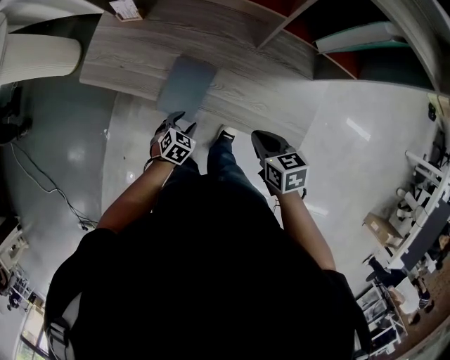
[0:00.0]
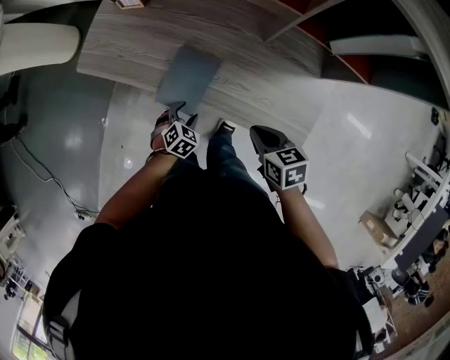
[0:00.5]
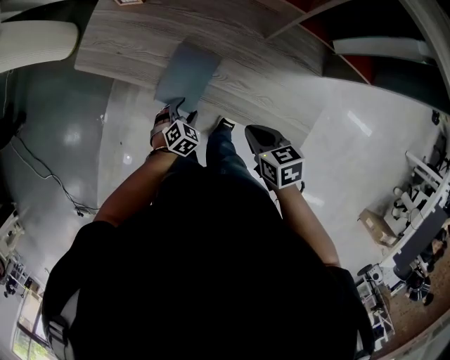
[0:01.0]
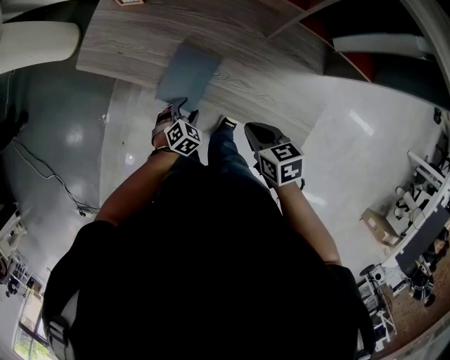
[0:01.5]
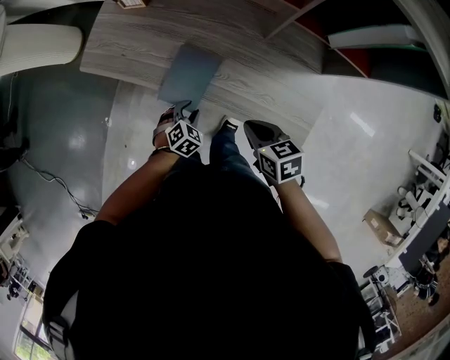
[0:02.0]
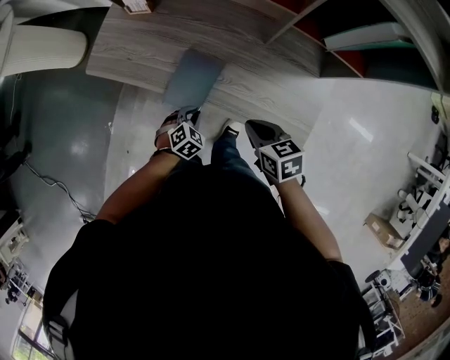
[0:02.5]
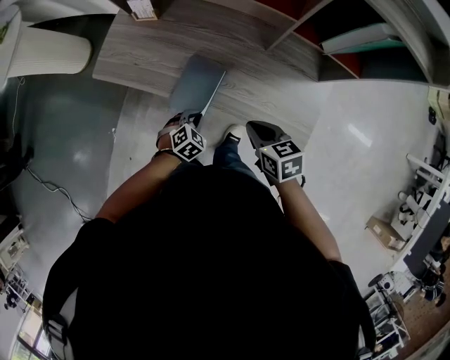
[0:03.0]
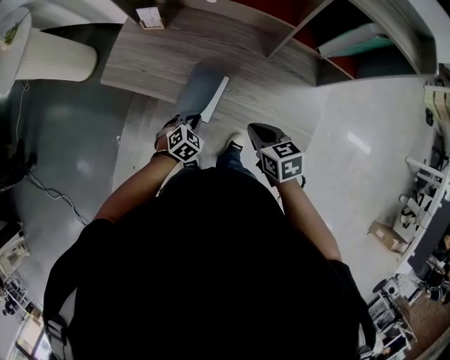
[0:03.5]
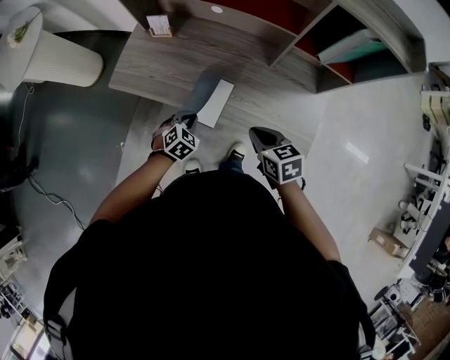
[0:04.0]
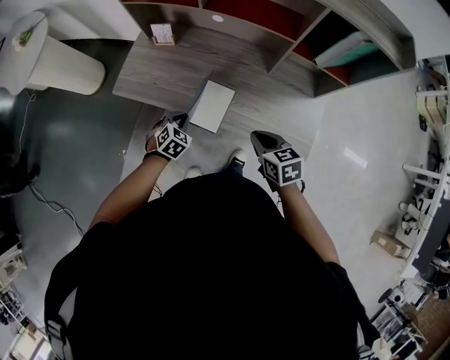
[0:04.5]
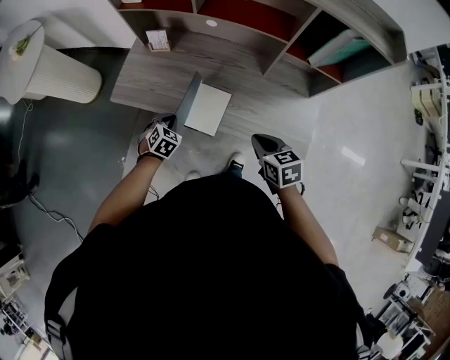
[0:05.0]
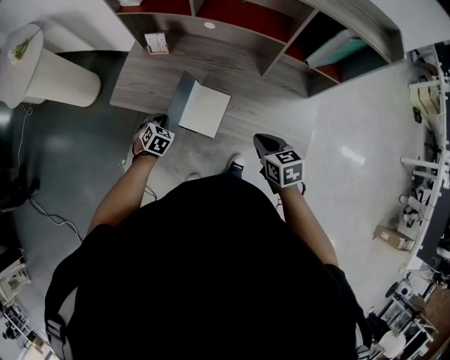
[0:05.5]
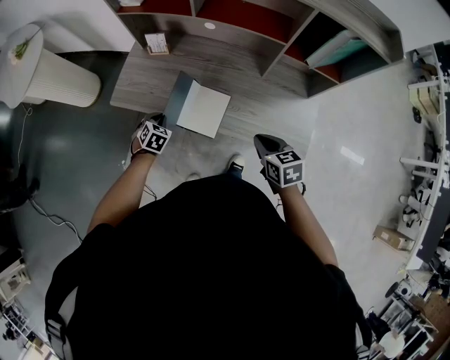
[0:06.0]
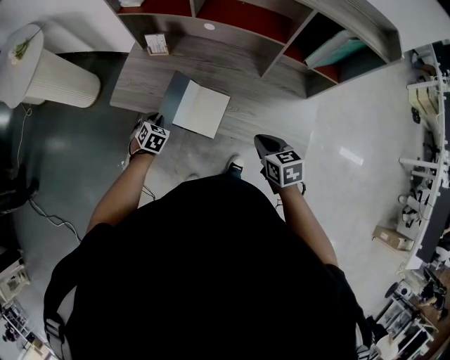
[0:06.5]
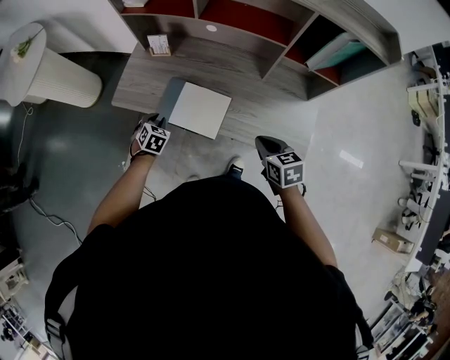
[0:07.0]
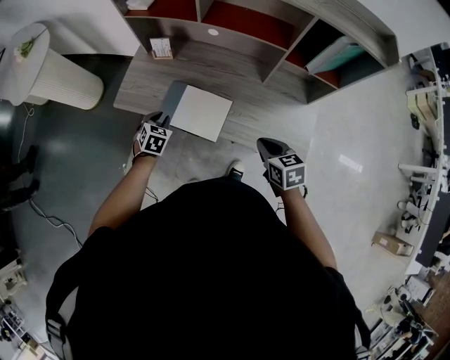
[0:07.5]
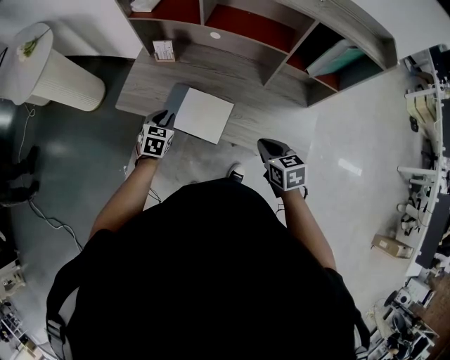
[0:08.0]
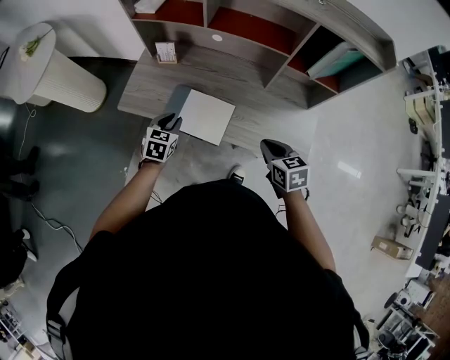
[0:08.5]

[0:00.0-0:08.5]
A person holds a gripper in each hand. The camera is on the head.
0.0 to 2.0 s: The grippers move only a little.
2.0 to 4.0 s: The right gripper travels upward by roughly 5 cm. The left gripper is displaced upward and to the left by about 10 cm, and closes its fingers.
4.0 to 6.5 s: The left gripper is displaced to the left and forward by roughly 15 cm.
6.5 to 8.5 s: The left gripper goes about 10 cm upward, and swivels roughly 20 degrees.

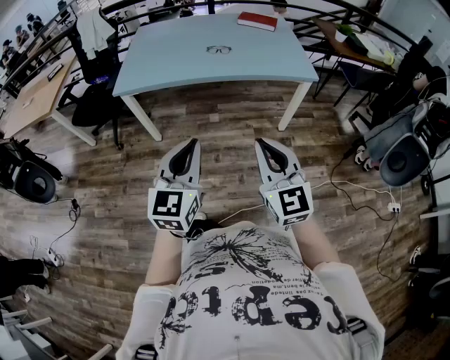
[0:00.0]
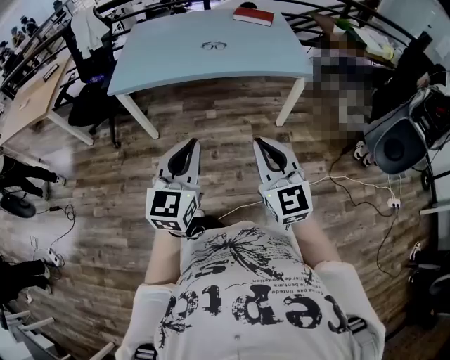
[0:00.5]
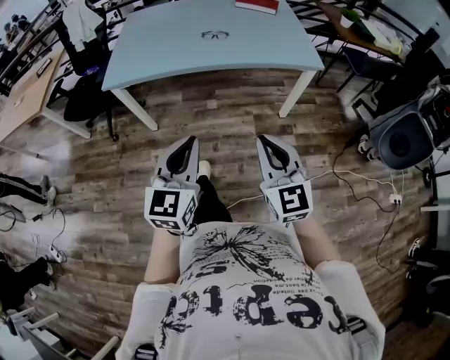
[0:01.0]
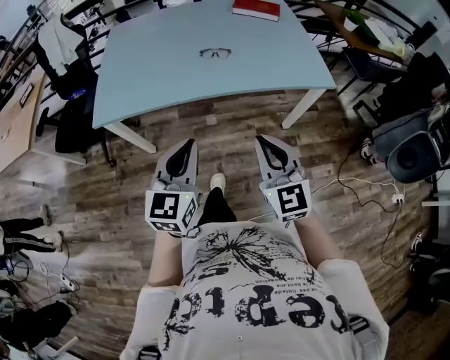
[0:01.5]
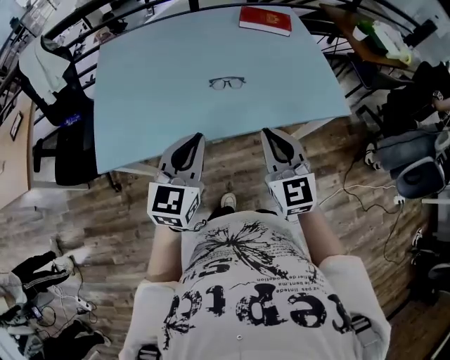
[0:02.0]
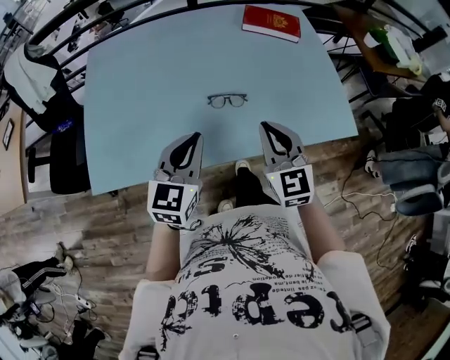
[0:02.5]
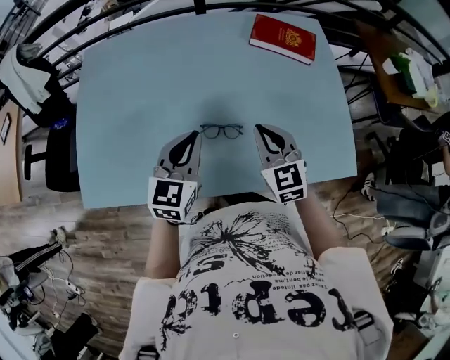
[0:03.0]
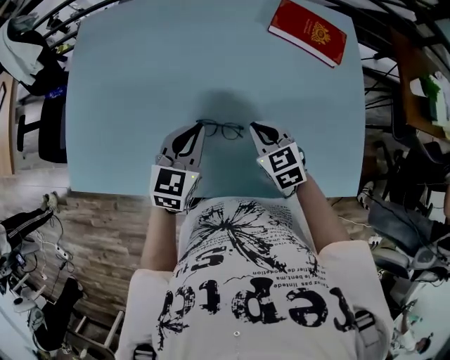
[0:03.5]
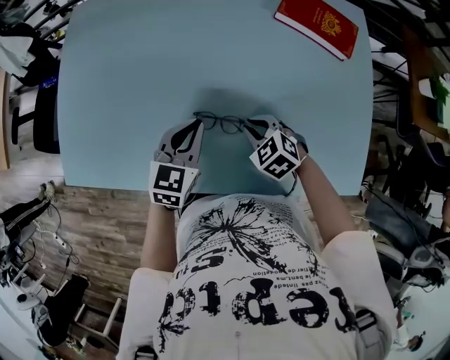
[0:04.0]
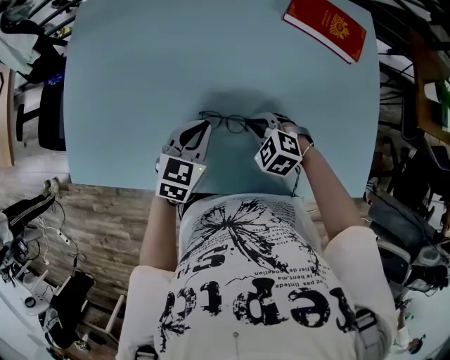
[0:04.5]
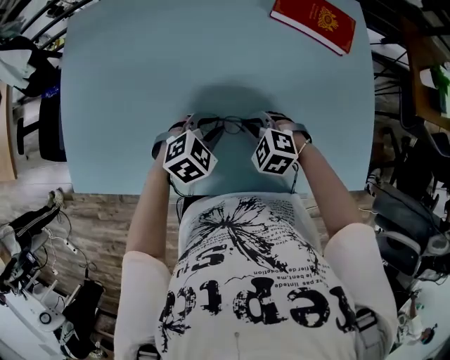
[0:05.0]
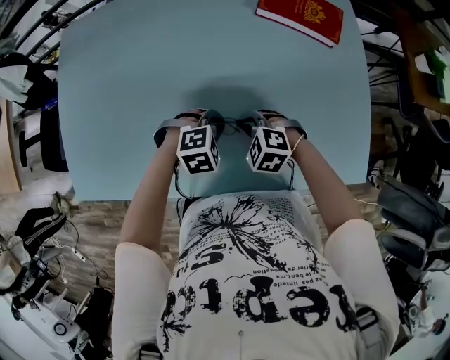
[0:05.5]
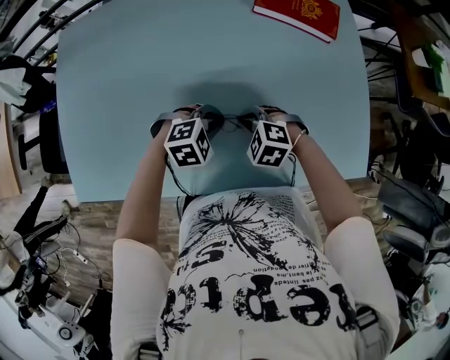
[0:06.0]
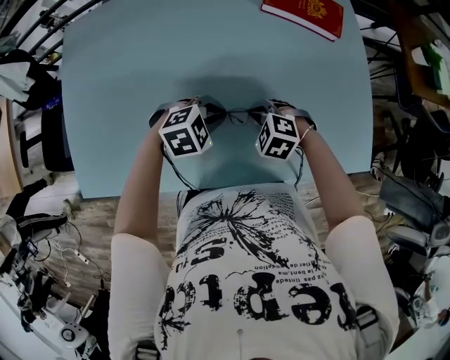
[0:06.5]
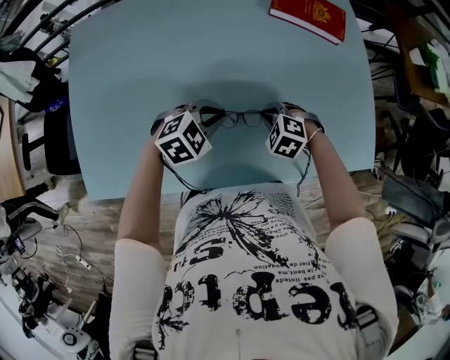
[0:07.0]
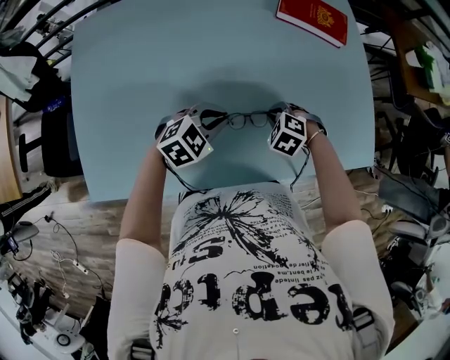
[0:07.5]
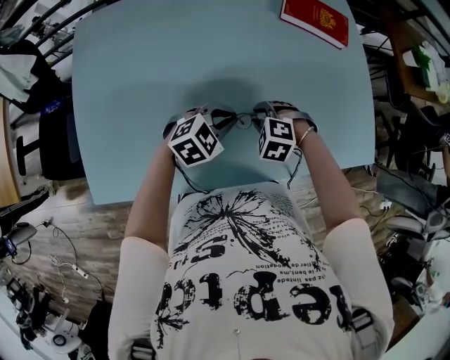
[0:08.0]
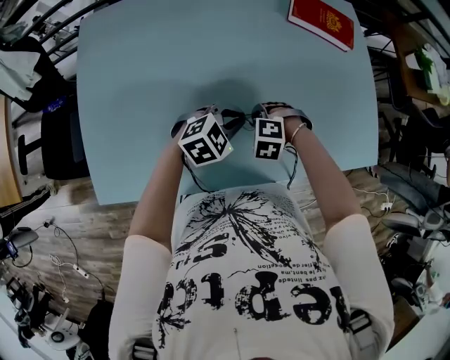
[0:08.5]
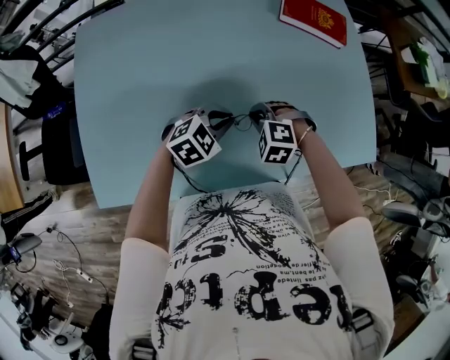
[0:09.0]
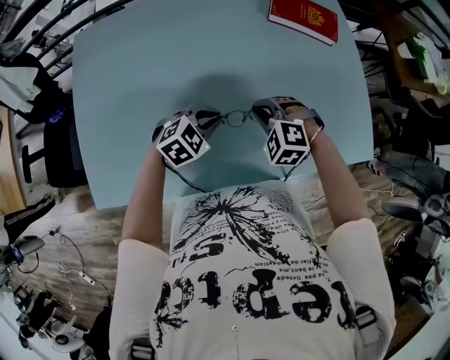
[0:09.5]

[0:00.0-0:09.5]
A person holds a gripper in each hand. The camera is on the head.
0.0 to 2.0 s: The two grippers travel together, forward, approximately 50 cm.
2.0 to 4.0 s: The left gripper ends up some 40 cm from where it was, and turns by approximately 20 degrees, while the right gripper shifts by approximately 40 cm, and points its fingers approximately 50 degrees further downward.
4.0 to 5.5 s: The left gripper goes about 10 cm downward and to the right, and tilts its fingers roughly 40 degrees downward.
5.5 to 7.5 s: The right gripper rotates some 20 degrees, while the left gripper ends up roughly 10 cm from where it was, and swivels roughly 30 degrees.
7.5 to 9.5 s: The right gripper is displaced upward by about 10 cm, and swivels approximately 20 degrees.

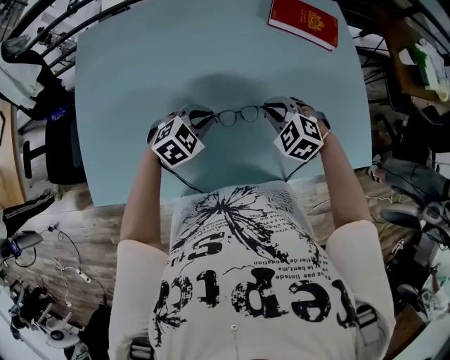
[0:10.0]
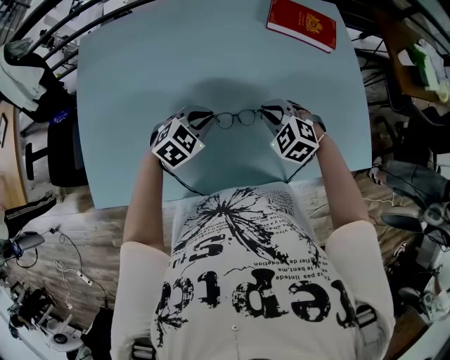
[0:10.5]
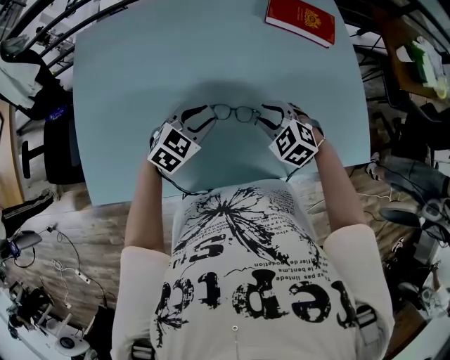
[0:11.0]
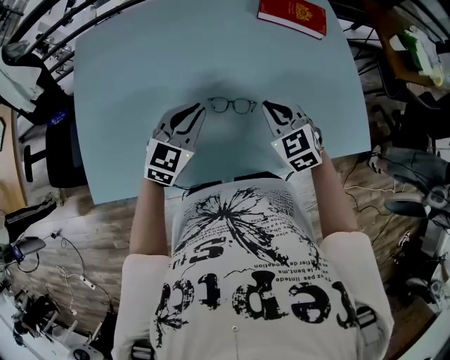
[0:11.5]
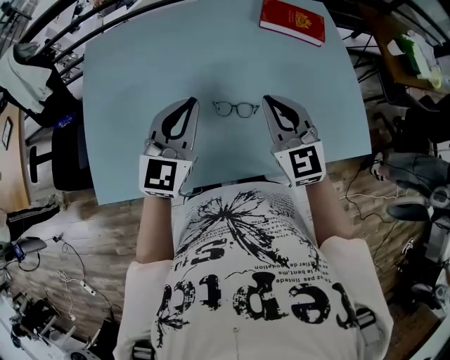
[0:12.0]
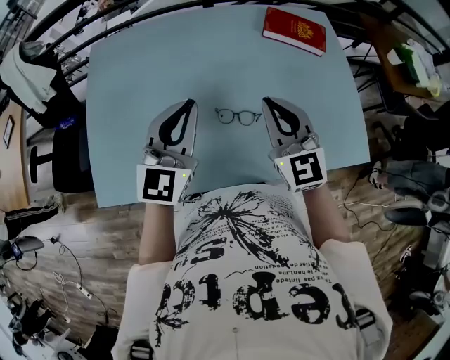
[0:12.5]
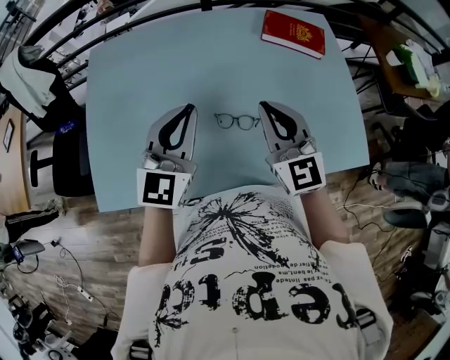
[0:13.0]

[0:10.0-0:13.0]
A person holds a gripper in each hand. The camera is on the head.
10.0 to 11.5 s: The right gripper shifts some 5 cm upward, turns by approximately 30 degrees, and opens, then closes once more. The left gripper shifts about 10 cm upward, and rotates roughly 30 degrees.
11.5 to 13.0 s: Both grippers move upward, some 15 cm. The left gripper changes its angle by roughly 30 degrees; the right gripper points its fingers about 30 degrees further upward.

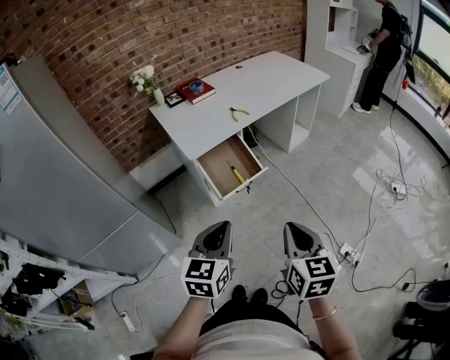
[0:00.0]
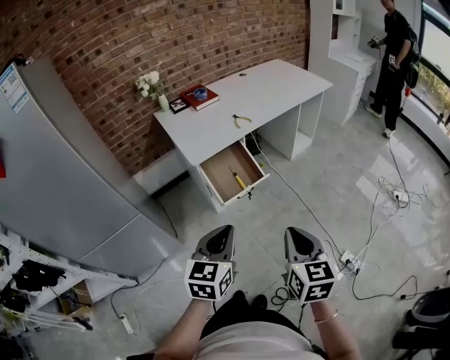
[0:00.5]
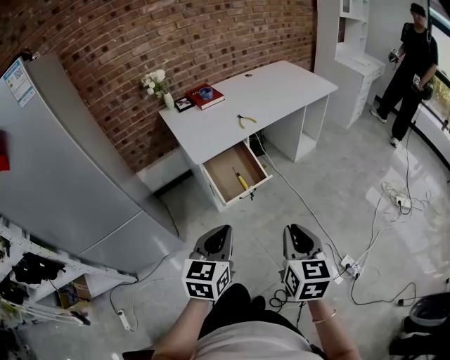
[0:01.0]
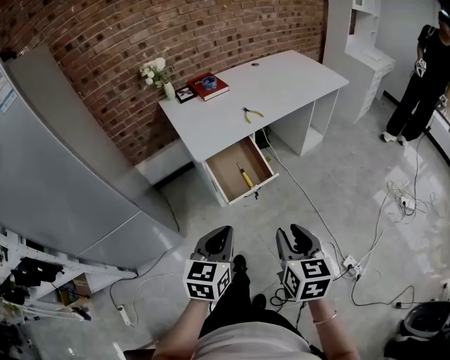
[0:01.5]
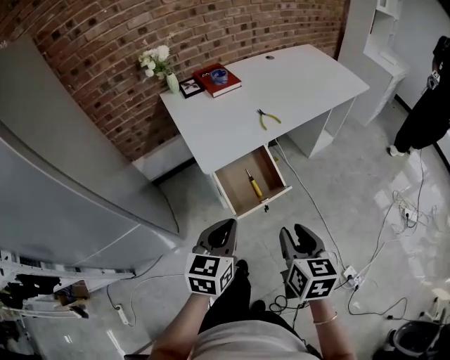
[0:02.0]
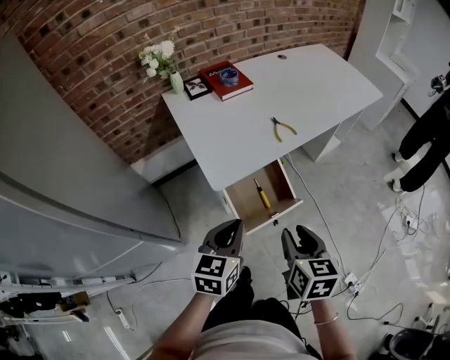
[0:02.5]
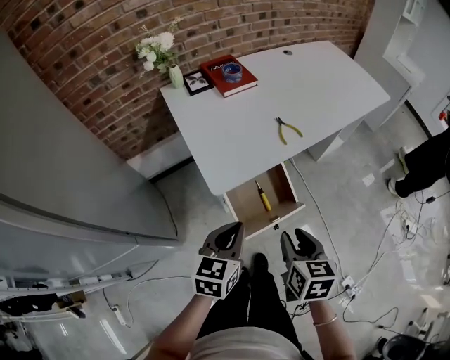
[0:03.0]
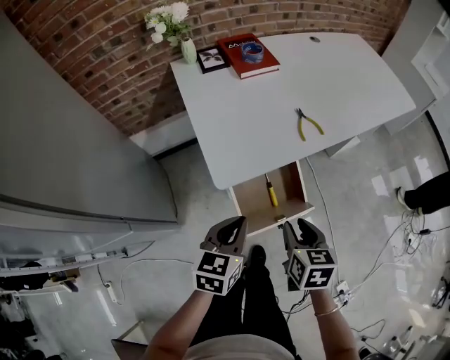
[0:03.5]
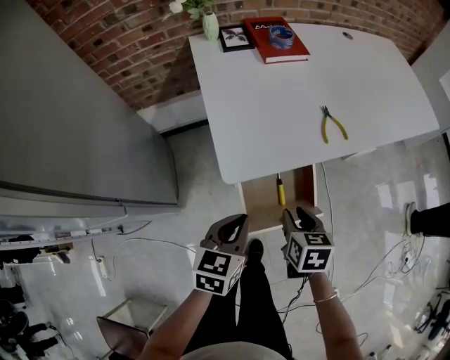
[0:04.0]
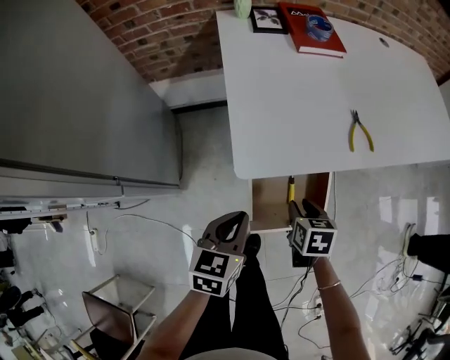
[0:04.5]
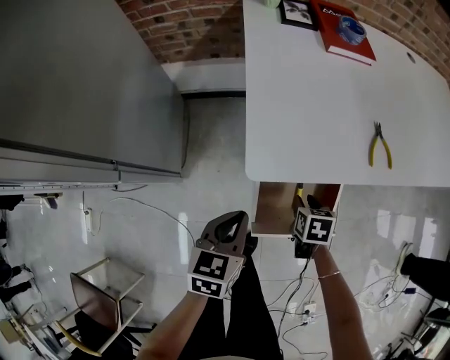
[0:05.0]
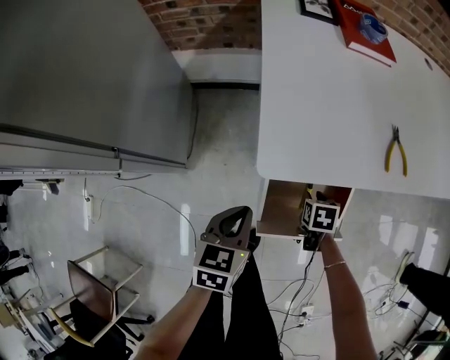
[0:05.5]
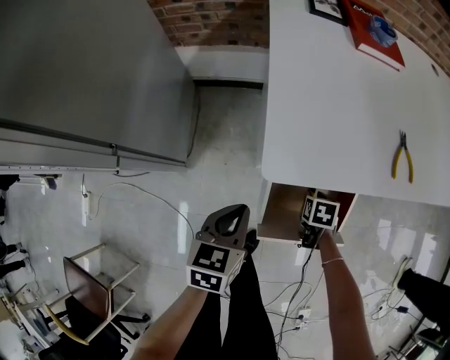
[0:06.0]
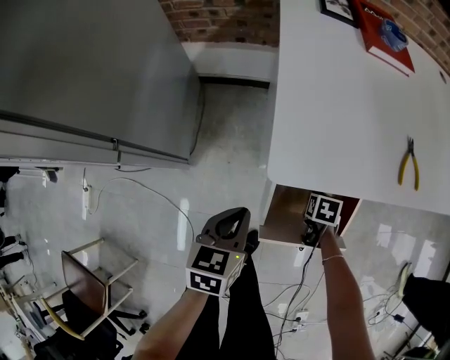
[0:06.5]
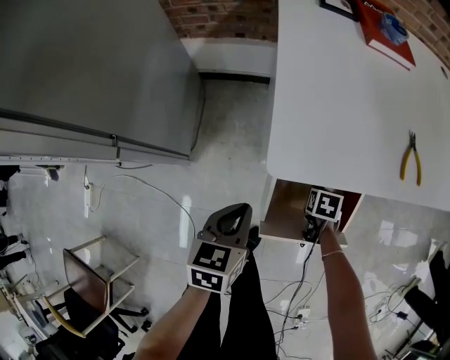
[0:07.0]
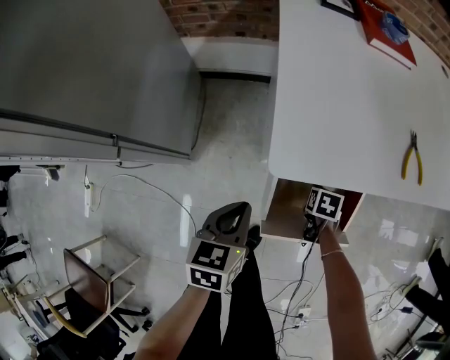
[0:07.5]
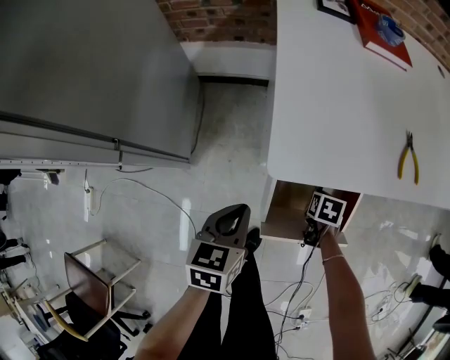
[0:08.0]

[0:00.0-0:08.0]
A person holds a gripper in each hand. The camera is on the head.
0.0 to 2.0 s: Both grippers move forward, some 15 cm. The right gripper opens its fingers.
2.0 to 4.0 s: The two grippers go roughly 25 cm forward and downward. The right gripper swivels about 30 degrees.
4.0 to 6.0 s: The left gripper moves downward and to the left, roughly 15 cm, and changes its angle by about 20 degrees. The right gripper moves downward and forward, approximately 25 cm, and swivels approximately 30 degrees.
6.0 to 8.0 s: There are only small adjustments of the grippers.
